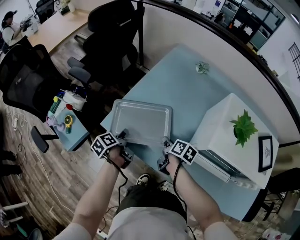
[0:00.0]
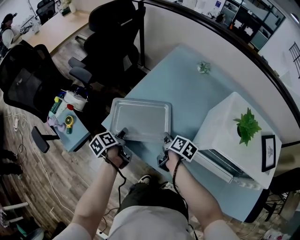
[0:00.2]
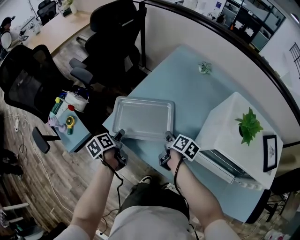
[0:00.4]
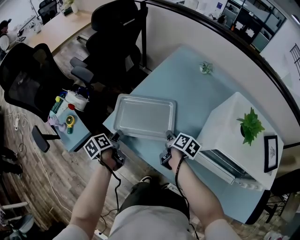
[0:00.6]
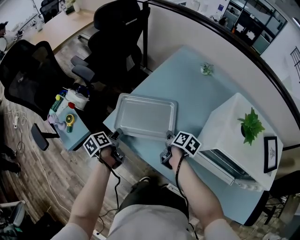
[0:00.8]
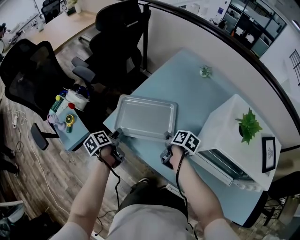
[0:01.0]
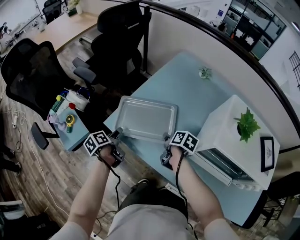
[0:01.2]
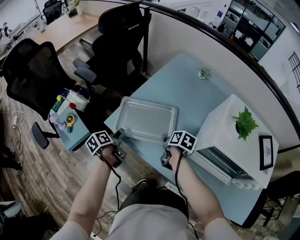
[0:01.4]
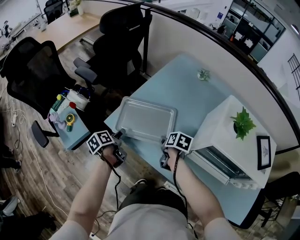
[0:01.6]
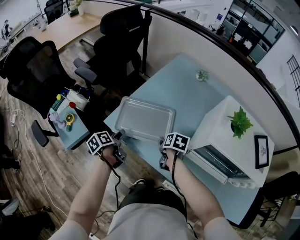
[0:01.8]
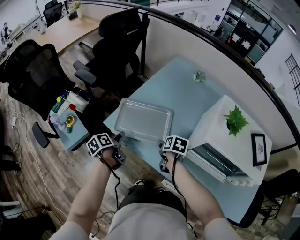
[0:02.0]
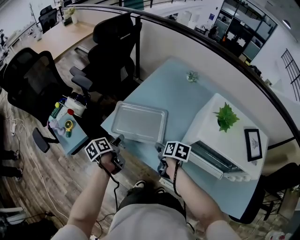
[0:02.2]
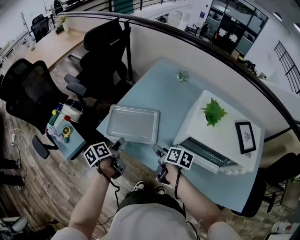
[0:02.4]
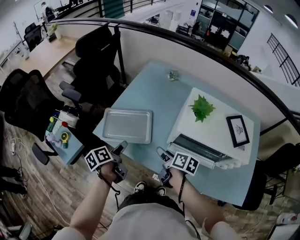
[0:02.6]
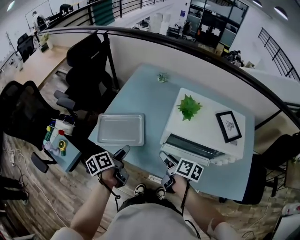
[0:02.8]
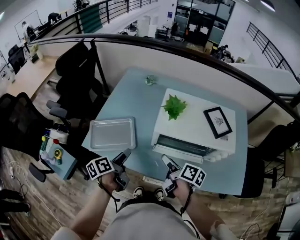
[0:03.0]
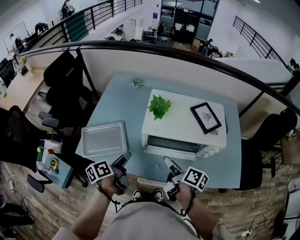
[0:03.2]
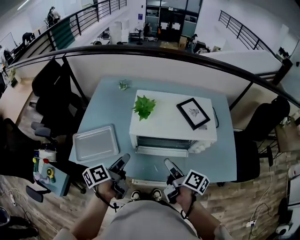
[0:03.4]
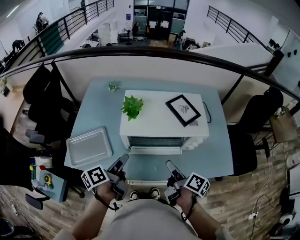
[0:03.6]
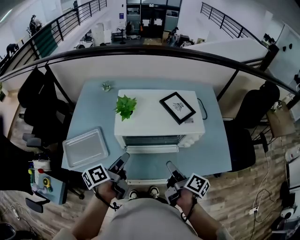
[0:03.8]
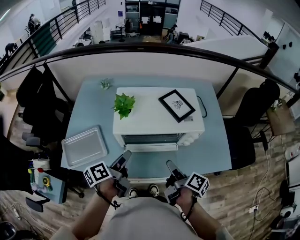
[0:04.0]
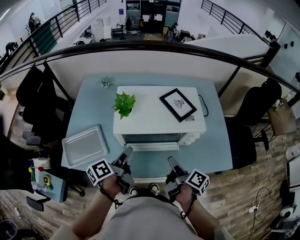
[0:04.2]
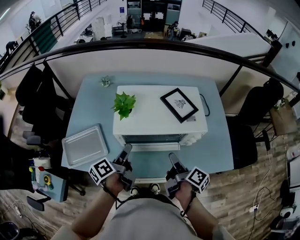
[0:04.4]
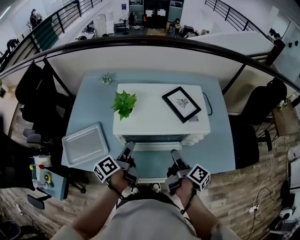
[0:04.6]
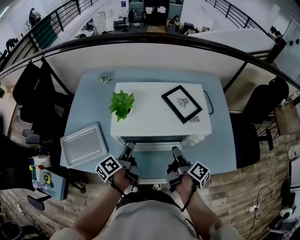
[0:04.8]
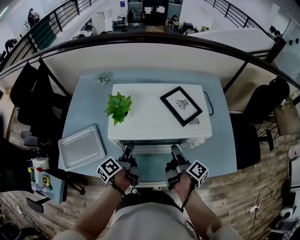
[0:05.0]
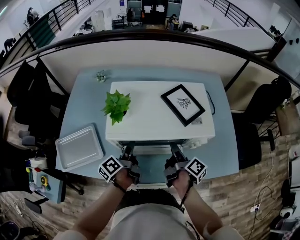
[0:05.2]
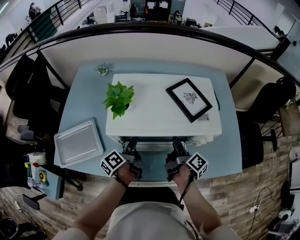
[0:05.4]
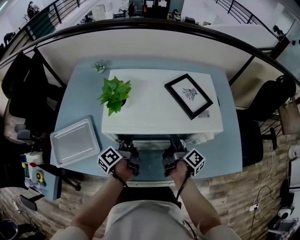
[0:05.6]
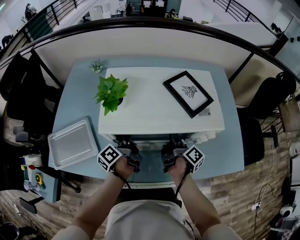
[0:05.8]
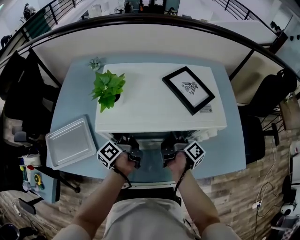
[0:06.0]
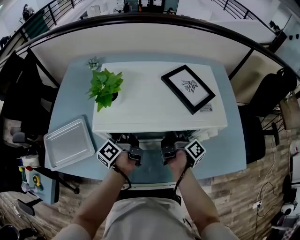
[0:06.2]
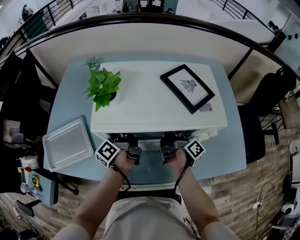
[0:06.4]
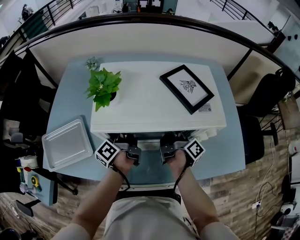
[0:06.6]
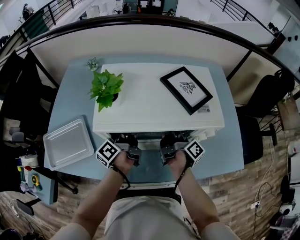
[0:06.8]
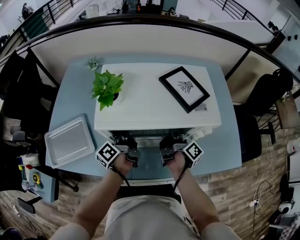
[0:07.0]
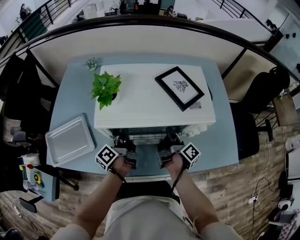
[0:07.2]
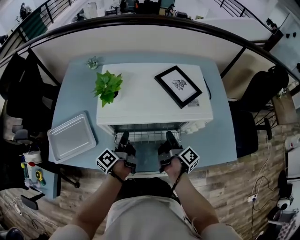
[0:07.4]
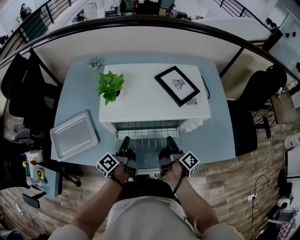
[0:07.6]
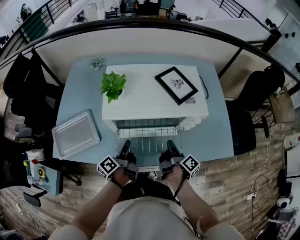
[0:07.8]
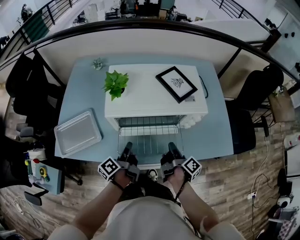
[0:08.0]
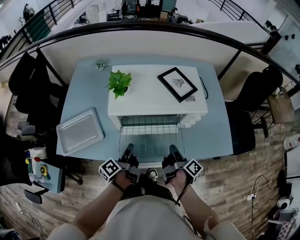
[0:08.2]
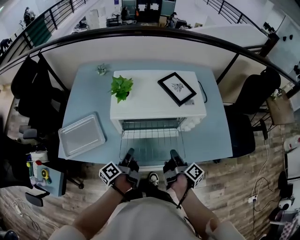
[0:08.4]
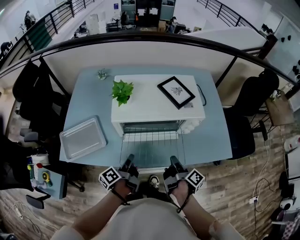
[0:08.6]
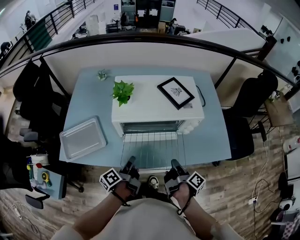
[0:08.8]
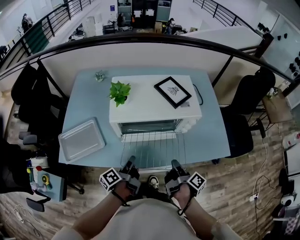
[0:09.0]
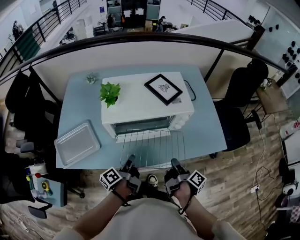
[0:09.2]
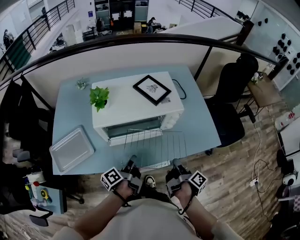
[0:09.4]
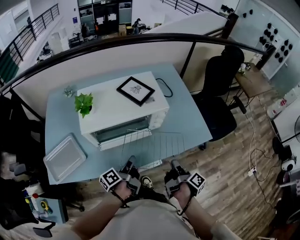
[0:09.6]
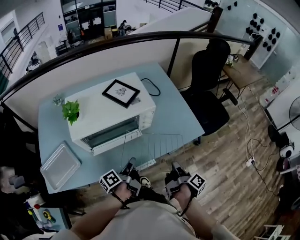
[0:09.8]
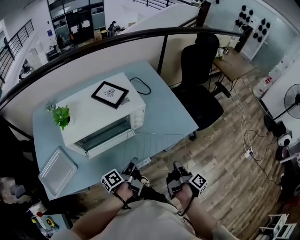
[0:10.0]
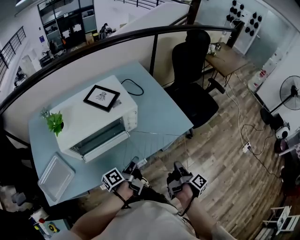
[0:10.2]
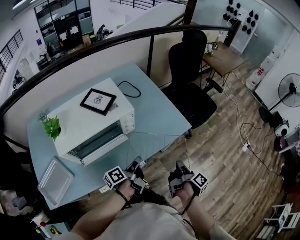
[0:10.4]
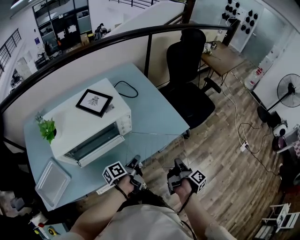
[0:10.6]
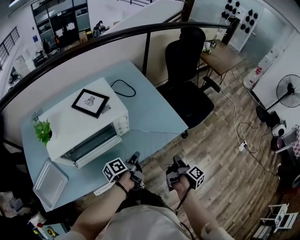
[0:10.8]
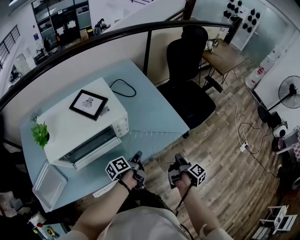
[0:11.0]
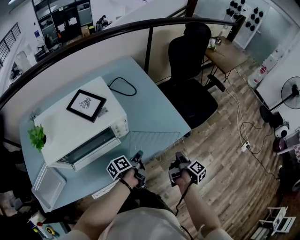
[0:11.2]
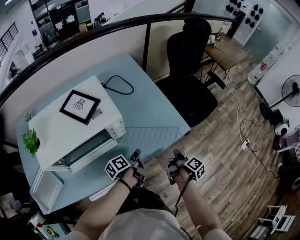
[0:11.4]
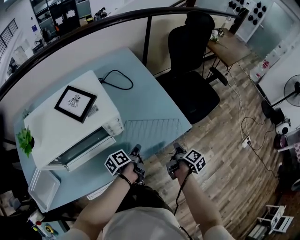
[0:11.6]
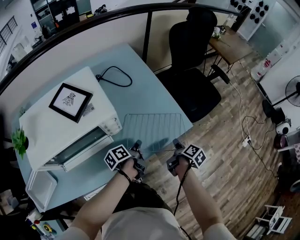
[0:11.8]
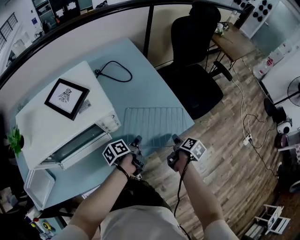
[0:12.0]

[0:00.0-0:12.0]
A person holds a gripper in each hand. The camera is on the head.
0:00.0 to 0:01.6: The right gripper rotates about 20 degrees.
0:01.6 to 0:03.0: The right gripper shifts approximately 30 cm upward, backward and to the right, and tips its fingers upward by approximately 30 degrees, while the left gripper moves to the right and upward, some 30 cm, and swivels about 30 degrees.
0:03.0 to 0:04.4: The left gripper heads to the right and forward, covering some 15 cm; the right gripper is displaced to the right by about 15 cm, and turns by about 30 degrees.
0:04.4 to 0:06.0: The right gripper is displaced forward and downward by roughly 20 cm. The left gripper shifts roughly 20 cm downward and forward.
0:06.0 to 0:07.6: Both grippers travel together backward, some 10 cm. The left gripper closes its fingers.
0:07.6 to 0:09.0: The right gripper travels backward and upward by approximately 15 cm, while the left gripper goes about 10 cm backward.
0:09.0 to 0:10.4: The right gripper ends up approximately 25 cm from where it was, and turns by approximately 40 degrees. Meanwhile the left gripper moves approximately 25 cm, and changes its angle by some 40 degrees.
0:10.4 to 0:12.0: The grippers both shift forward and downward by roughly 25 cm. The right gripper angles its fingers downward, by roughly 30 degrees, and opens its fingers.

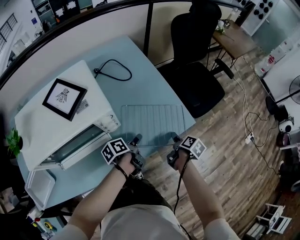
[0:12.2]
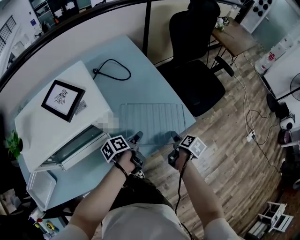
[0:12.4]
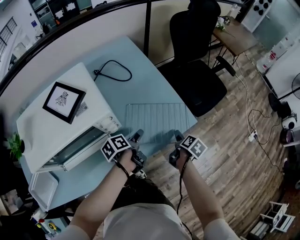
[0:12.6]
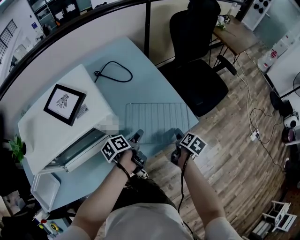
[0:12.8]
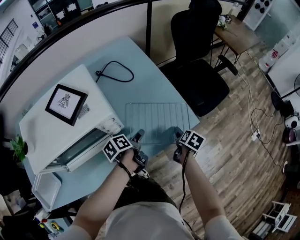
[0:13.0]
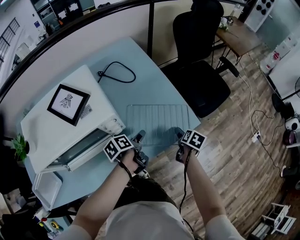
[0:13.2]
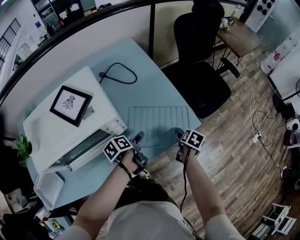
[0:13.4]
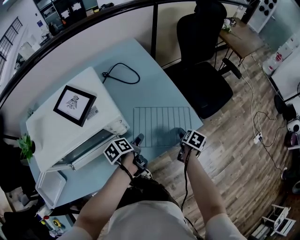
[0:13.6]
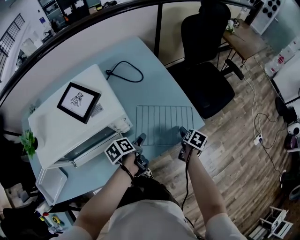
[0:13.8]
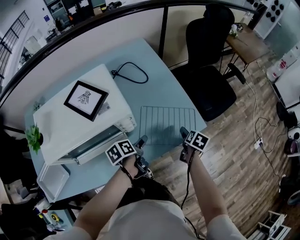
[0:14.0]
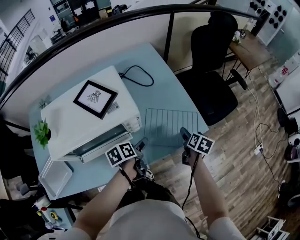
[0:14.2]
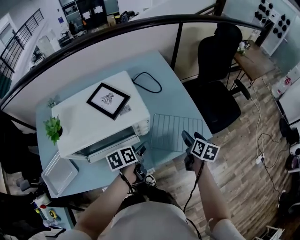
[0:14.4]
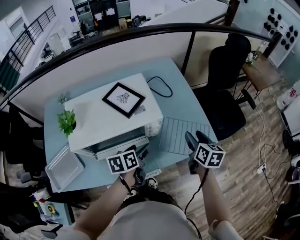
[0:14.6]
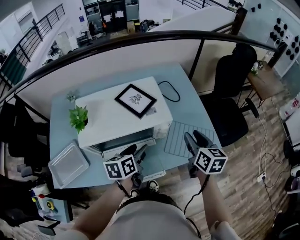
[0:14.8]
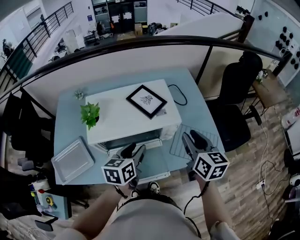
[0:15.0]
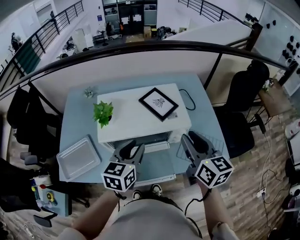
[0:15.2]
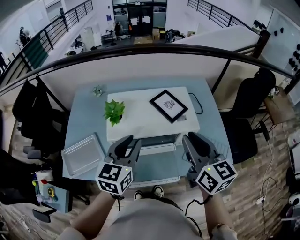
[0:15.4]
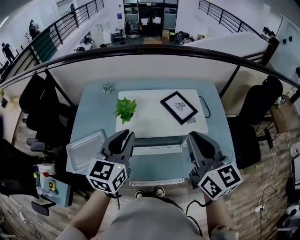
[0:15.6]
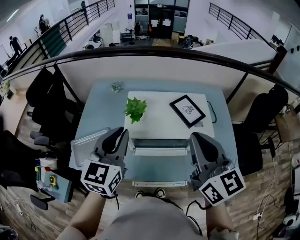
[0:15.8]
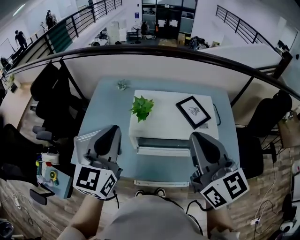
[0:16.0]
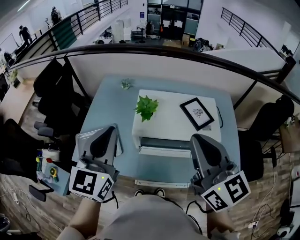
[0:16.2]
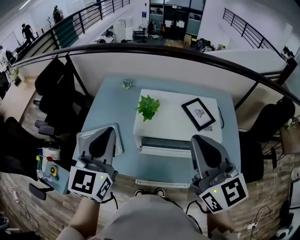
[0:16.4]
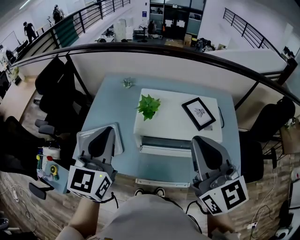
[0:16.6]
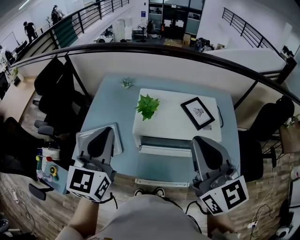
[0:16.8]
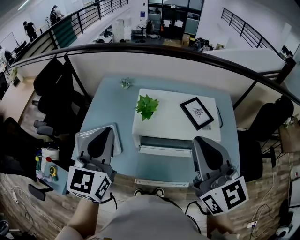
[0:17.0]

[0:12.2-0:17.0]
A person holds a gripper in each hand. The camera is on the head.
0:12.2 to 0:13.8: The left gripper moves about 5 cm, and opens, while the right gripper changes its angle by some 30 degrees, and opens its fingers.
0:13.8 to 0:15.4: Both grippers move upward, some 35 cm. The right gripper tilts its fingers approximately 50 degrees upward, and closes its fingers. Meanwhile the left gripper tilts its fingers some 30 degrees upward, and closes.
0:15.4 to 0:17.0: Both grippers move to the left and upward, roughly 15 cm. The right gripper changes its angle by some 20 degrees, while the left gripper changes its angle by about 30 degrees.

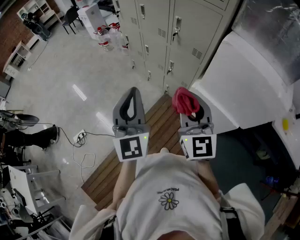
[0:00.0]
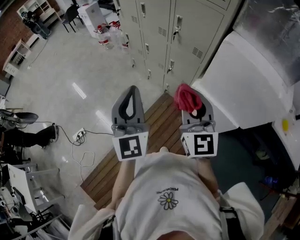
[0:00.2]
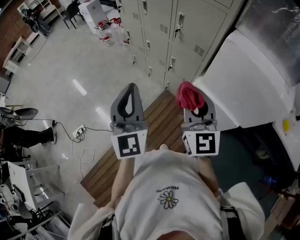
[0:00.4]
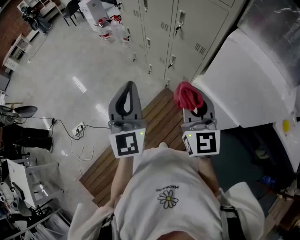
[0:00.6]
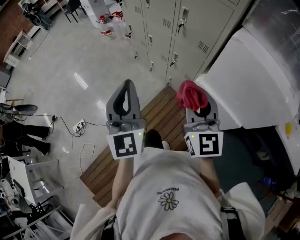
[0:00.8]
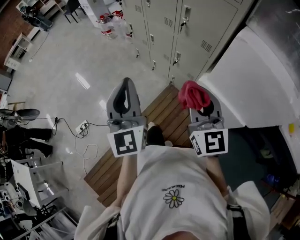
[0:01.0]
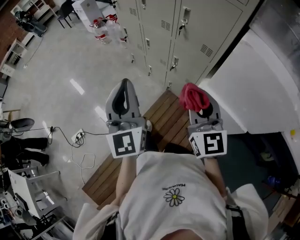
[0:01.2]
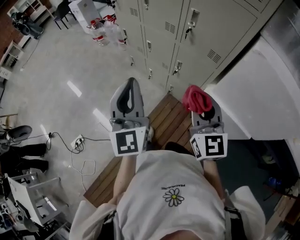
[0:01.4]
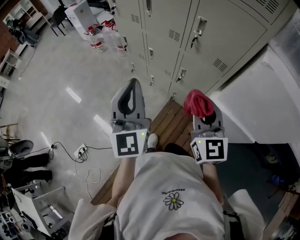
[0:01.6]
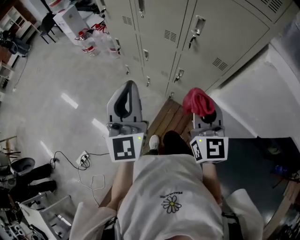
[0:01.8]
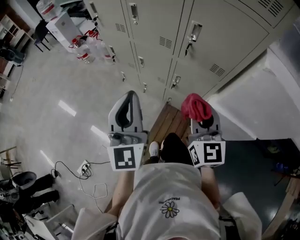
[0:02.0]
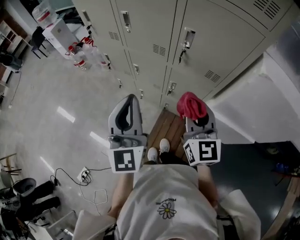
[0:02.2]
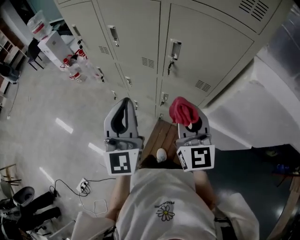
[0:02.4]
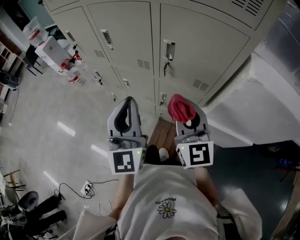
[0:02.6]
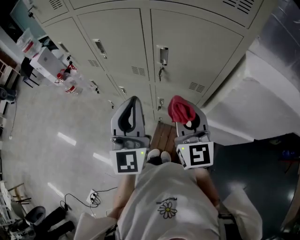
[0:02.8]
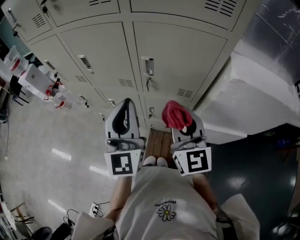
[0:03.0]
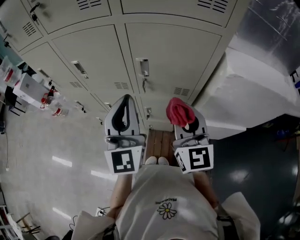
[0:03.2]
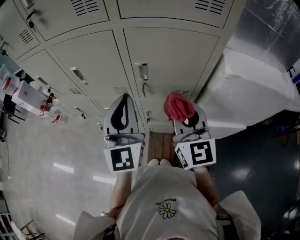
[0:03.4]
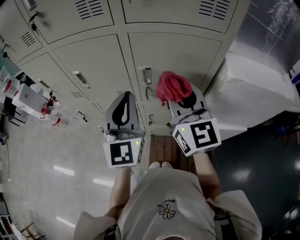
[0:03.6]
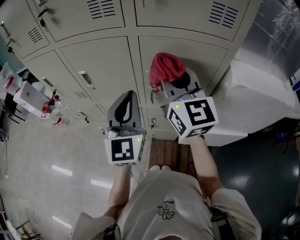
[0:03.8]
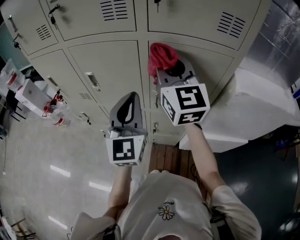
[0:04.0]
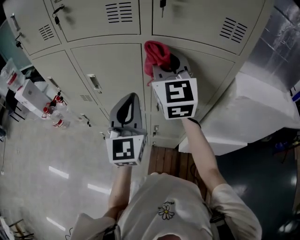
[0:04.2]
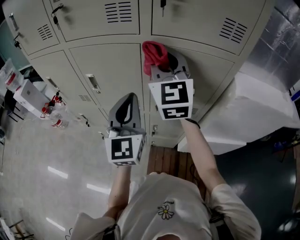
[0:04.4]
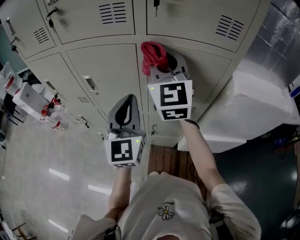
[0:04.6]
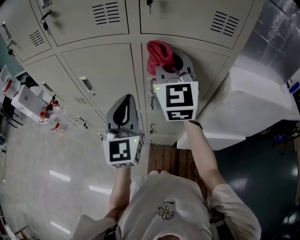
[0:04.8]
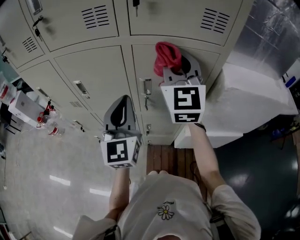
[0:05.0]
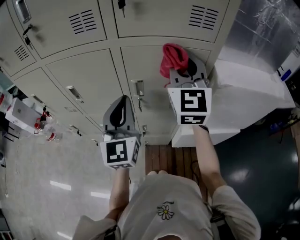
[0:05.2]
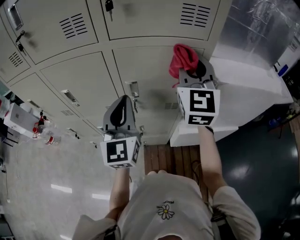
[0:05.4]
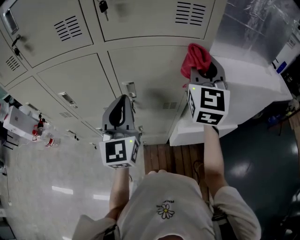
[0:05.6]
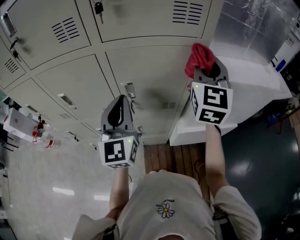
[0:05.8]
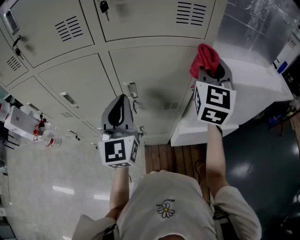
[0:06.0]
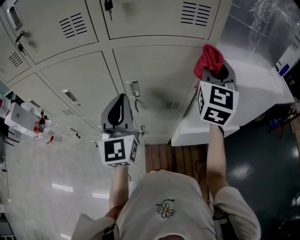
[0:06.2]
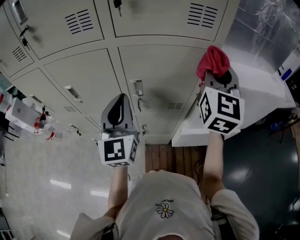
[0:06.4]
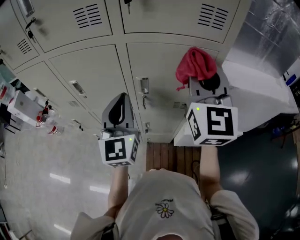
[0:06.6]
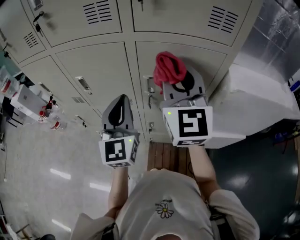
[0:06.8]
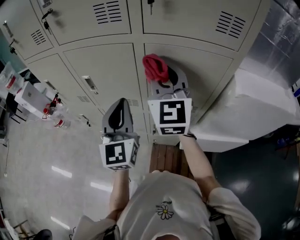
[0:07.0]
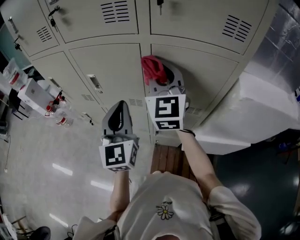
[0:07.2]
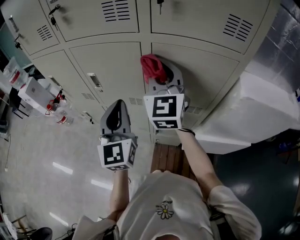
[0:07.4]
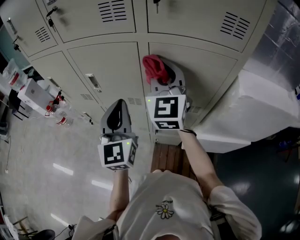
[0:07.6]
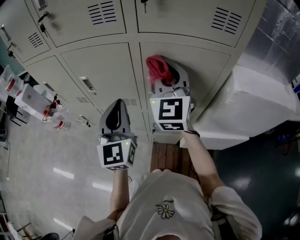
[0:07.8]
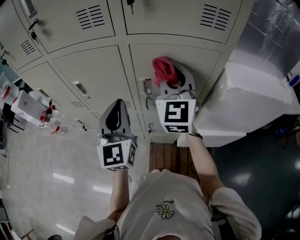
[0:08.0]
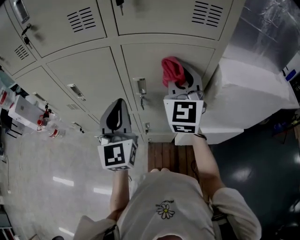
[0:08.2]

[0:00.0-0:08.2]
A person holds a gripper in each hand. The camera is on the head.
0:00.0 to 0:01.6: The right gripper is displaced forward and downward by some 20 cm. Meanwhile the left gripper goes approximately 25 cm forward.
0:01.6 to 0:03.2: The right gripper shifts by approximately 15 cm, and changes its angle by approximately 30 degrees. The left gripper moves roughly 25 cm, and swivels approximately 30 degrees.
0:03.2 to 0:05.0: The left gripper goes roughly 5 cm forward. Meanwhile the right gripper moves upward and forward, approximately 20 cm, and turns by some 20 degrees.
0:05.0 to 0:06.6: The right gripper heads to the right, covering about 10 cm.
0:06.6 to 0:08.2: The right gripper moves downward and forward, approximately 10 cm, and travels to the left and back again, roughly 15 cm each way.
